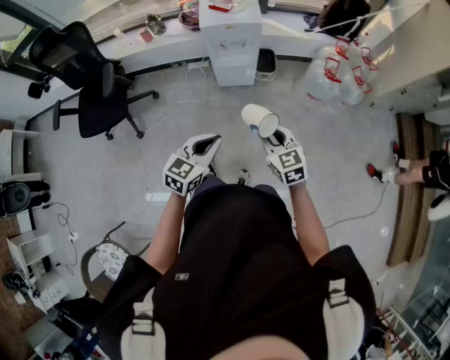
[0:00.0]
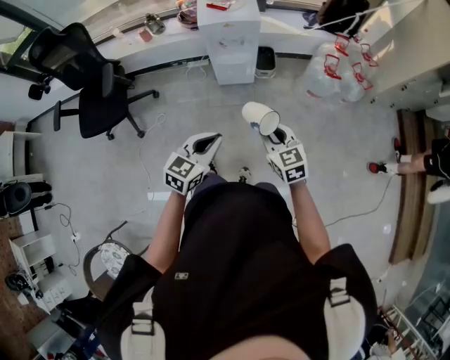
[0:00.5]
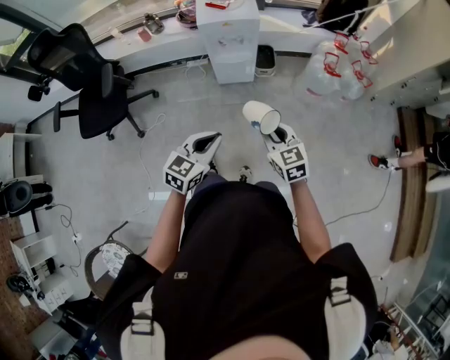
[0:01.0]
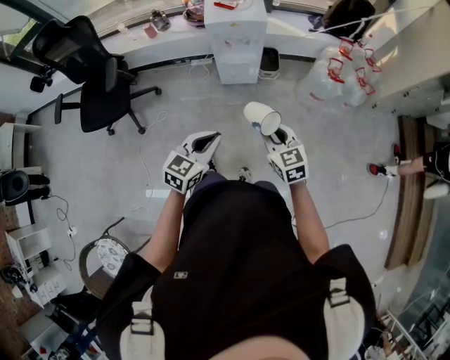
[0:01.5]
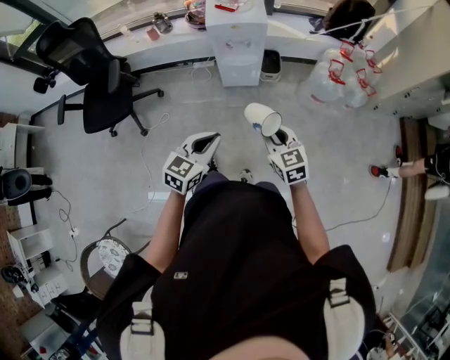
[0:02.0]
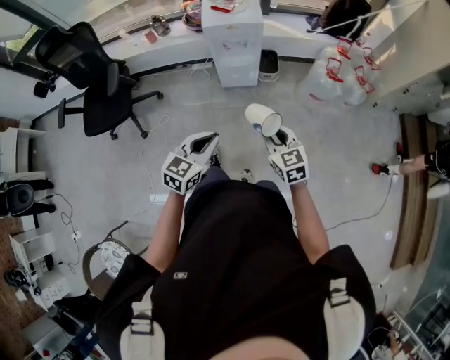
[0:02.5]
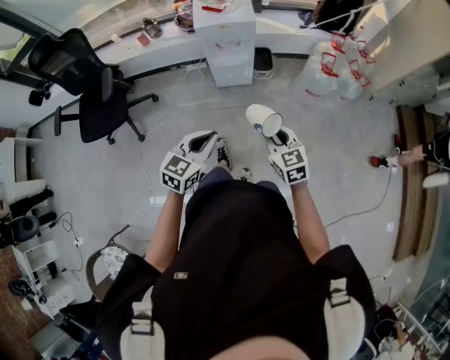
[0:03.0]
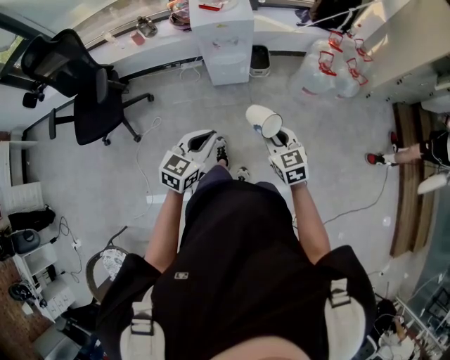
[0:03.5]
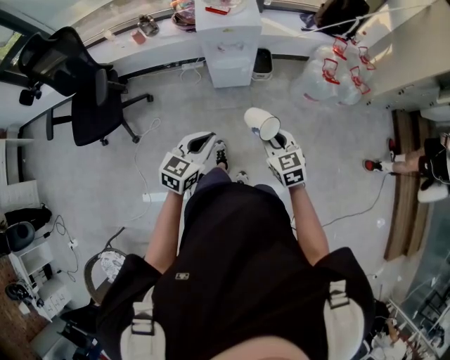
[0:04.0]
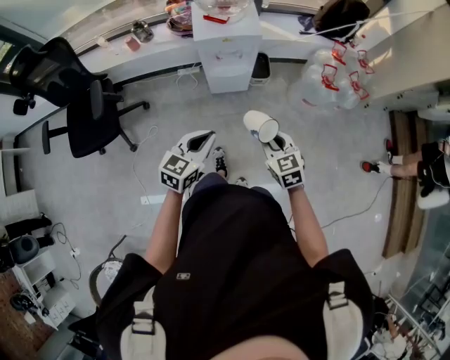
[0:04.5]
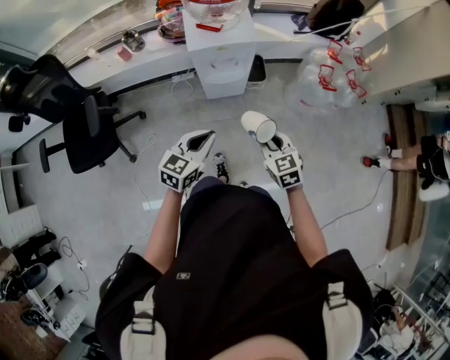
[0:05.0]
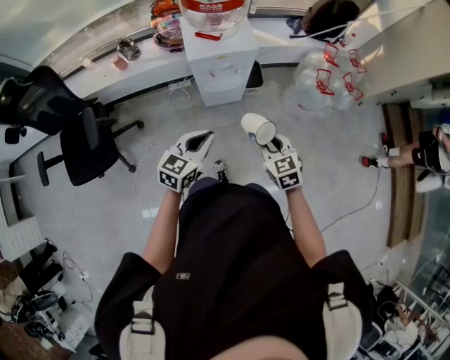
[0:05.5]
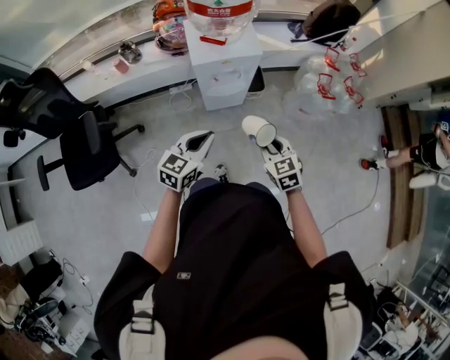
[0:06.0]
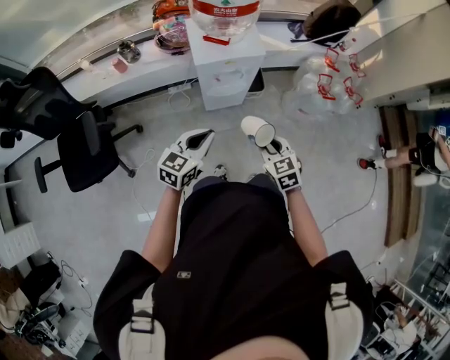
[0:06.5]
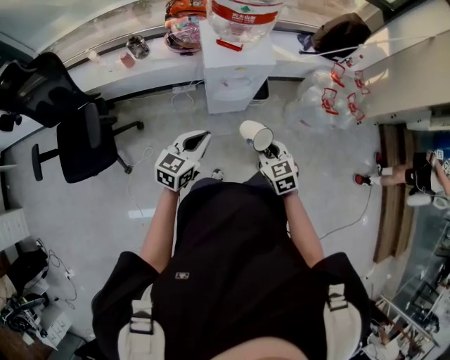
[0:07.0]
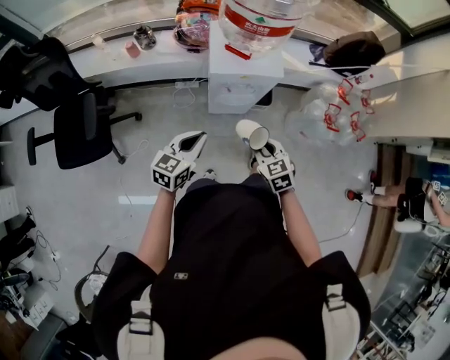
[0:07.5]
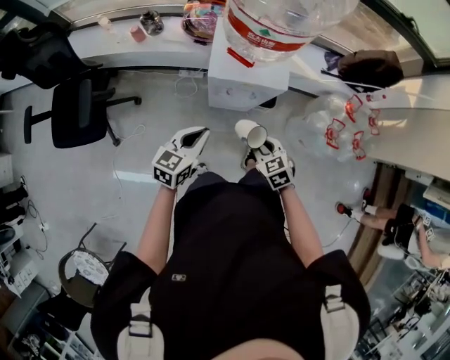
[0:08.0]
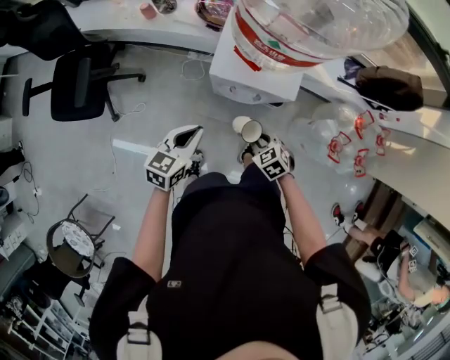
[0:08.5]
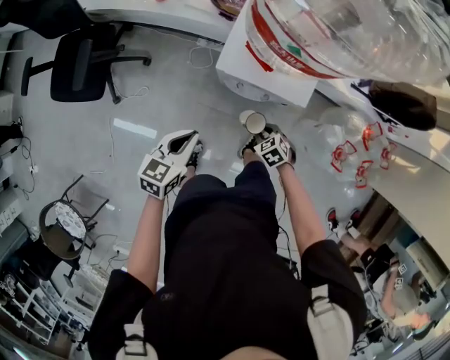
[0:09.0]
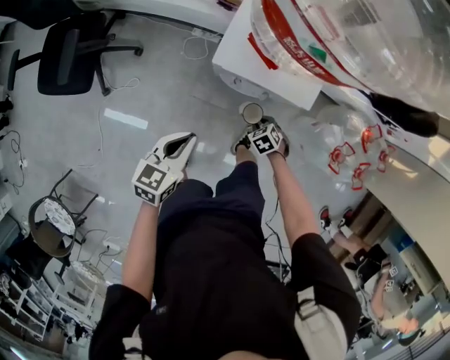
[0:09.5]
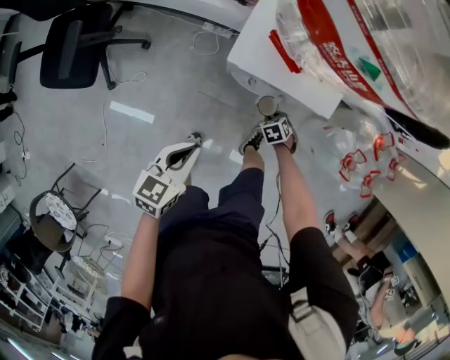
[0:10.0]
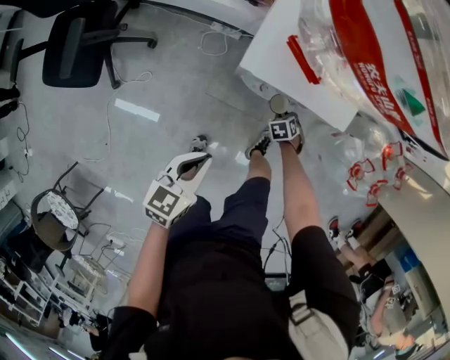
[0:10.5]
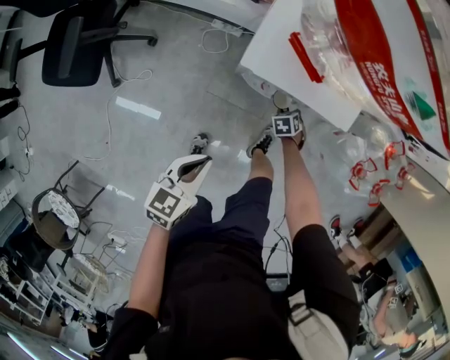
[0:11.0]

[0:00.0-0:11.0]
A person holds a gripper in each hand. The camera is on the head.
0:00.0 to 0:02.0: Both grippers stay put.
0:02.0 to 0:03.5: There are only small adjustments of the grippers.
0:03.5 to 0:05.5: The two grippers go some 20 cm forward and to the left.
0:05.5 to 0:07.5: The left gripper travels to the left and forward by about 10 cm. Meanwhile the right gripper heads forward and to the left, covering some 10 cm.
0:07.5 to 0:09.0: The right gripper heads downward, covering about 20 cm, and turns by roughly 40 degrees, while the left gripper moves approximately 10 cm, and changes its angle by roughly 20 degrees.
0:09.0 to 0:11.0: The right gripper shifts approximately 20 cm downward, and turns by roughly 30 degrees. The left gripper travels downward by about 10 cm.

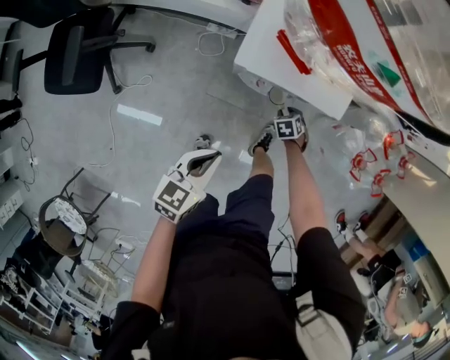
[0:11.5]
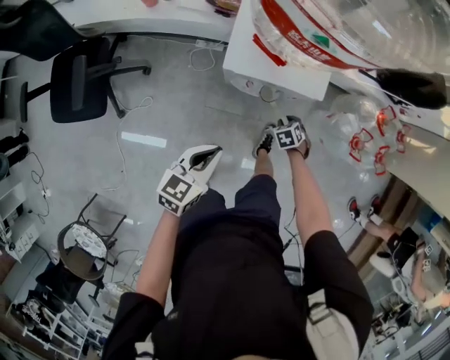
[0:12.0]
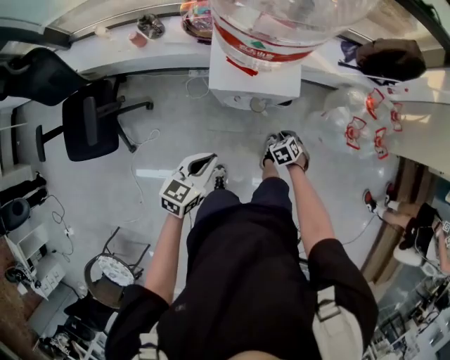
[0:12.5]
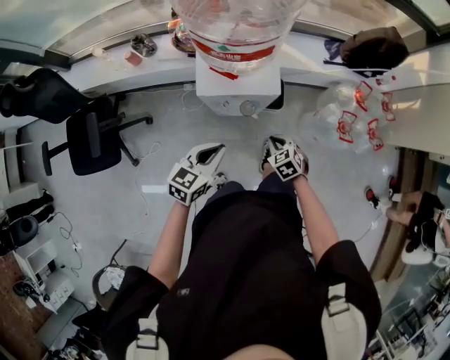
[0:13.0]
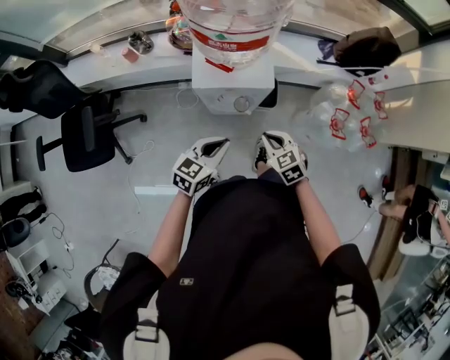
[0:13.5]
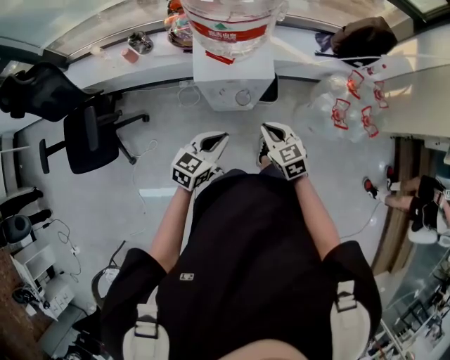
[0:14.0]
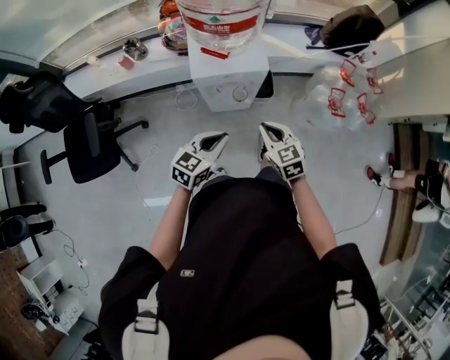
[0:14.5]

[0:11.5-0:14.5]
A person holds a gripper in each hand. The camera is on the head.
0:11.5 to 0:13.0: The left gripper moves upward, roughly 15 cm, and rotates roughly 20 degrees. Meanwhile the right gripper travels upward by some 25 cm, turns by roughly 20 degrees, and closes its fingers.
0:13.0 to 0:14.5: The right gripper travels upward and backward by roughly 15 cm, and rotates about 20 degrees; the left gripper moves backward, some 5 cm.

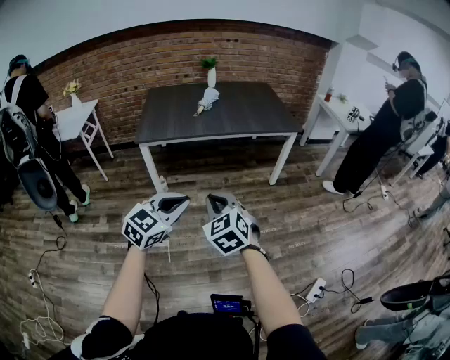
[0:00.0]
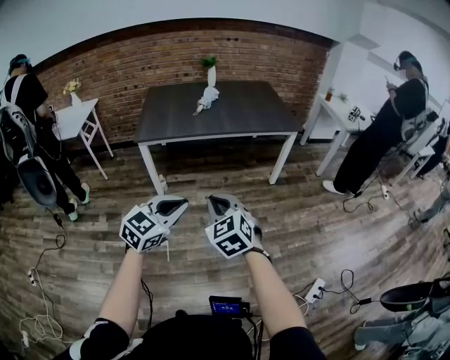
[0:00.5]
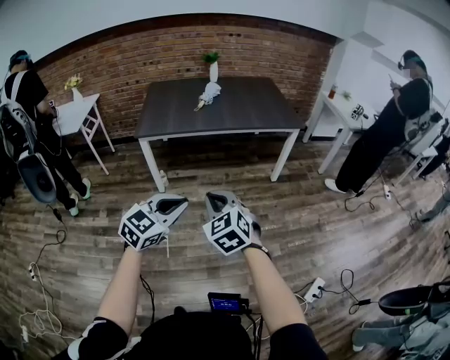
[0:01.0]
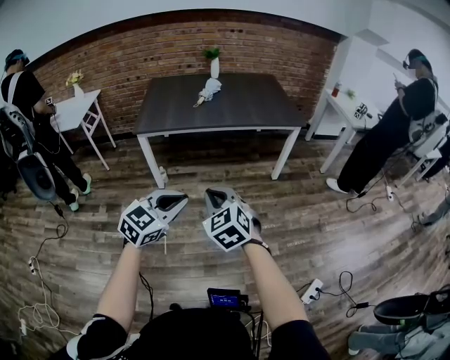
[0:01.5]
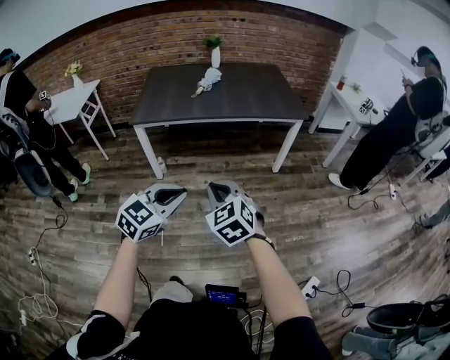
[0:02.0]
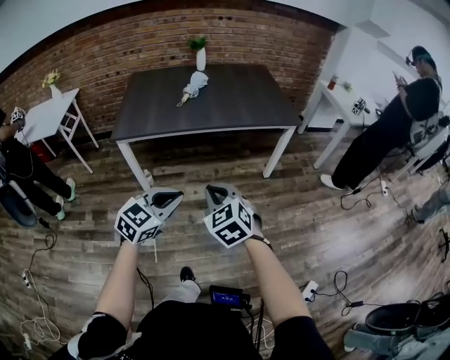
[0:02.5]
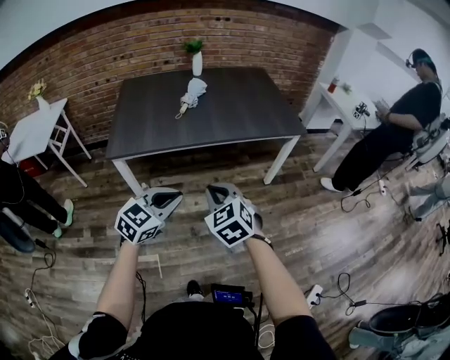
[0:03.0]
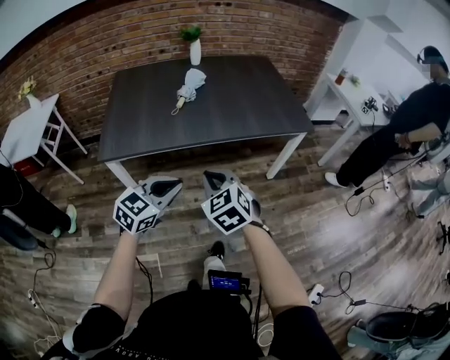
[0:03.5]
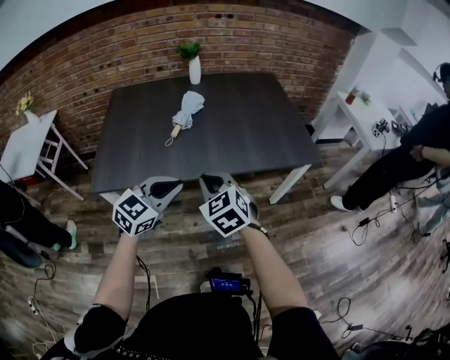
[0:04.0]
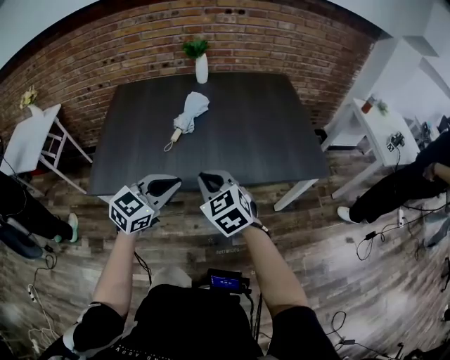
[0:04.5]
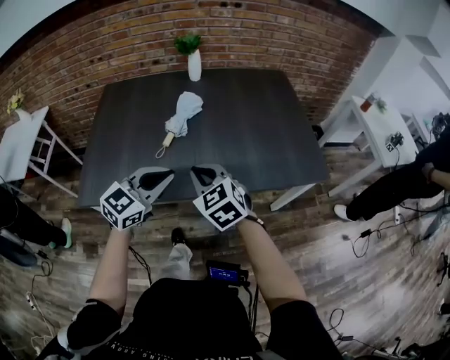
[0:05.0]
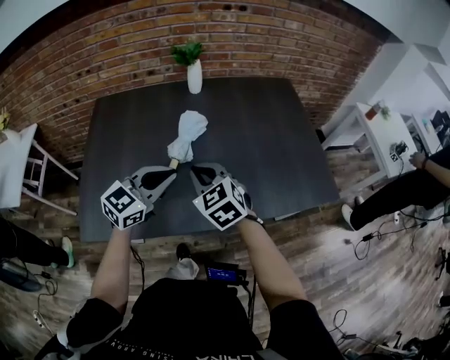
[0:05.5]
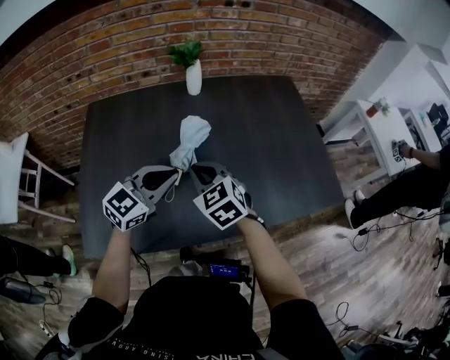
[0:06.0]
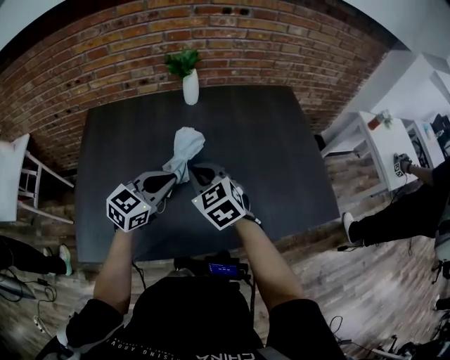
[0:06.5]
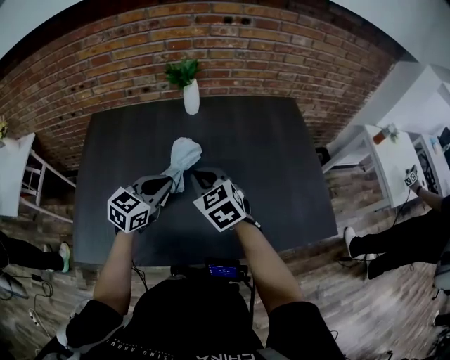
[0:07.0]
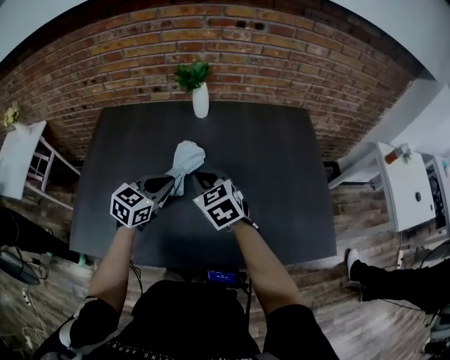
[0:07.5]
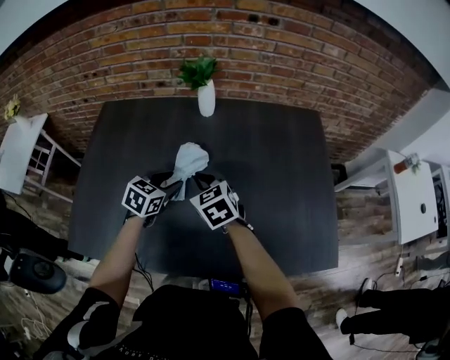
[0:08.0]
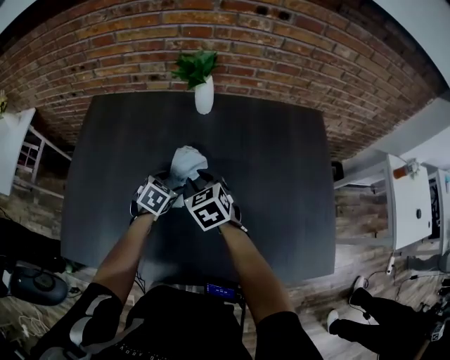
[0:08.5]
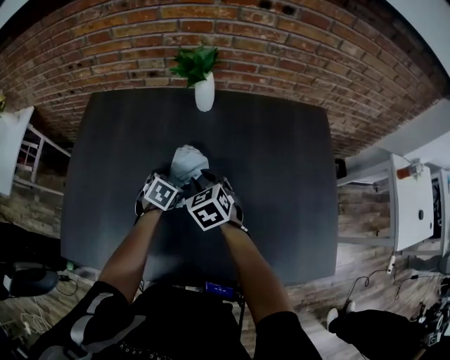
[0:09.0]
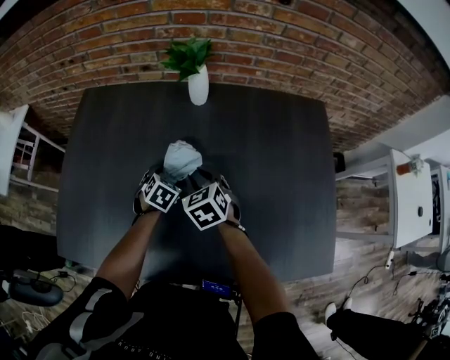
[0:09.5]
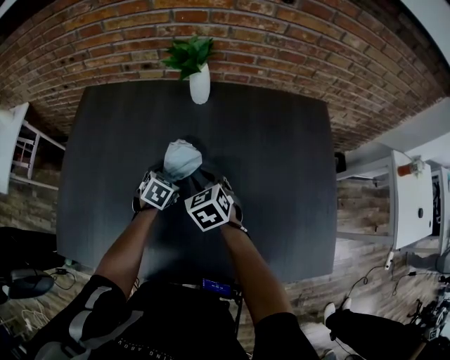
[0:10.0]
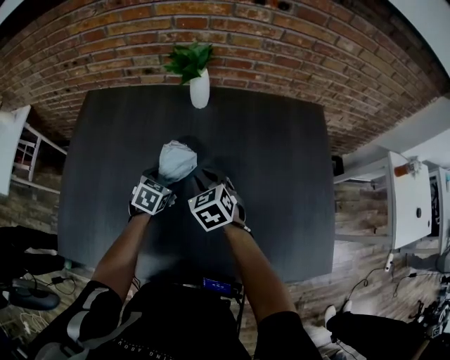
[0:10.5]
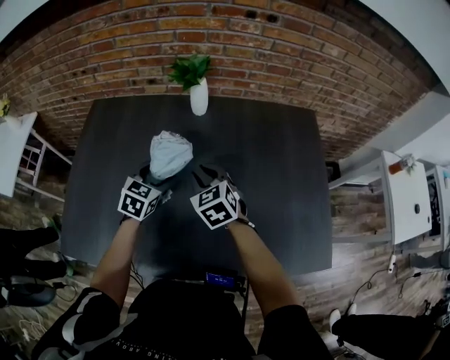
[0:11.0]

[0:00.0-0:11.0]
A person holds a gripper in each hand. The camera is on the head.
0:00.0 to 0:02.0: The left gripper moves to the right, approximately 5 cm, while the right gripper shifts about 10 cm to the right and forward.
0:02.0 to 0:03.5: Both grippers move forward, roughly 35 cm.
0:03.5 to 0:05.5: The pair of grippers is taken forward, about 40 cm.
0:05.5 to 0:07.5: The grippers both shift forward by some 15 cm. The left gripper rotates approximately 20 degrees.
0:07.5 to 0:09.0: Both grippers move downward and forward, roughly 20 cm. The left gripper tilts its fingers approximately 40 degrees downward, and opens up. The right gripper opens its fingers.
0:09.0 to 0:11.0: The right gripper travels upward by about 5 cm. The left gripper travels upward by roughly 10 cm, and swivels approximately 20 degrees.

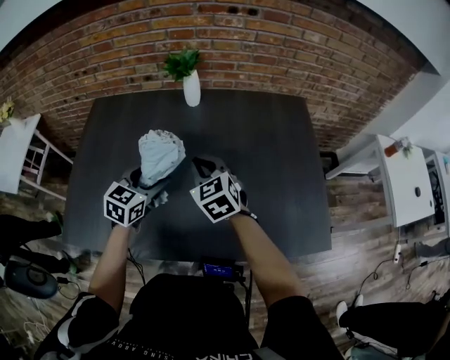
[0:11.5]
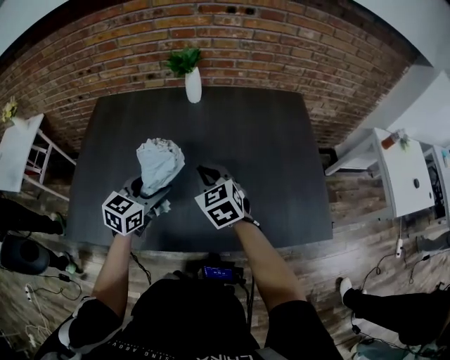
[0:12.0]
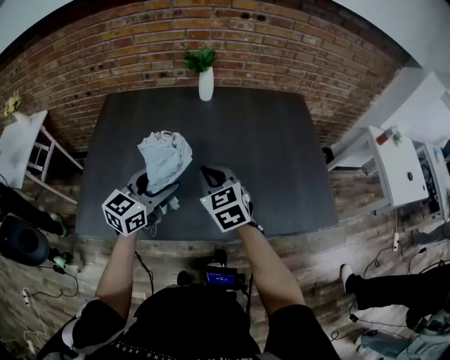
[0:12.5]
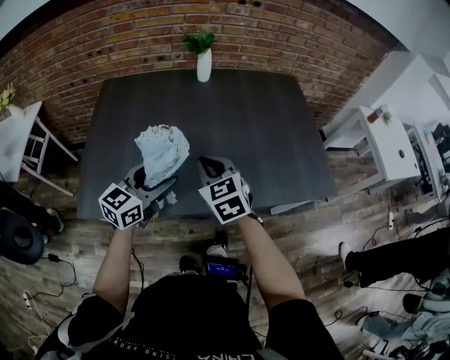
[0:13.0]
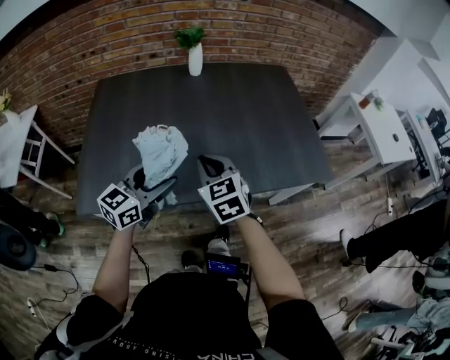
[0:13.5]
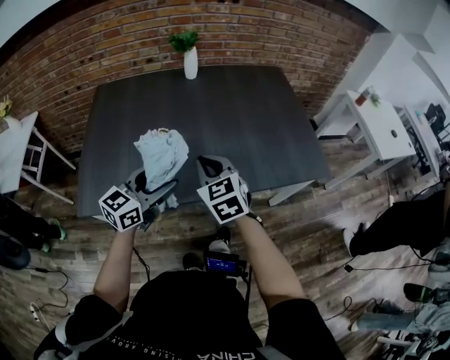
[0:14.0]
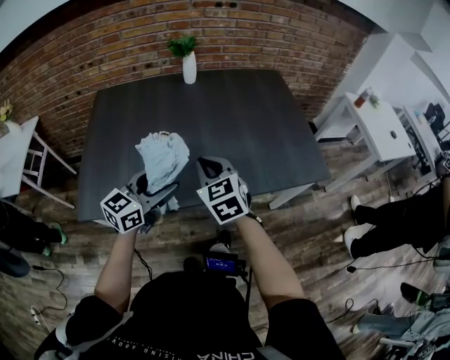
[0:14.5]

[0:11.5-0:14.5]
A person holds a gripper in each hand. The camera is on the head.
0:11.5 to 0:13.0: The two grippers go some 20 cm backward. The left gripper changes its angle by approximately 20 degrees.
0:13.0 to 0:14.5: The right gripper changes place by about 5 cm, while the left gripper travels backward by roughly 5 cm.
